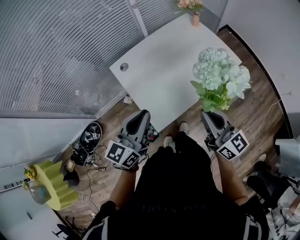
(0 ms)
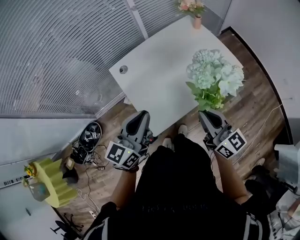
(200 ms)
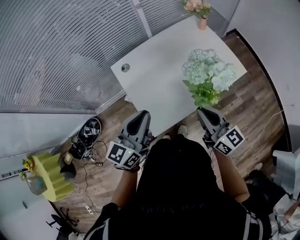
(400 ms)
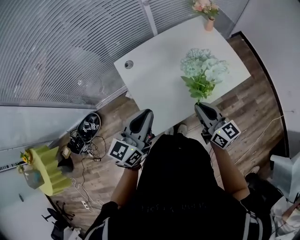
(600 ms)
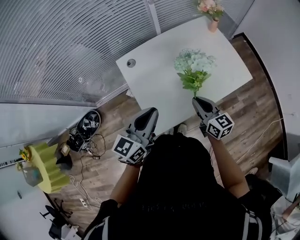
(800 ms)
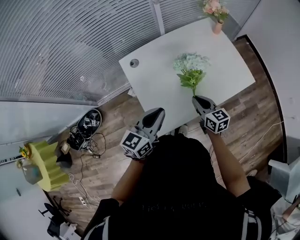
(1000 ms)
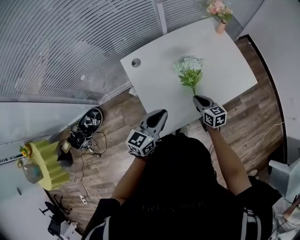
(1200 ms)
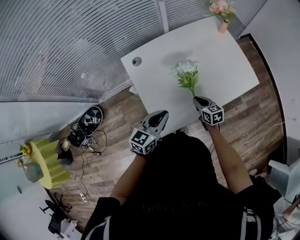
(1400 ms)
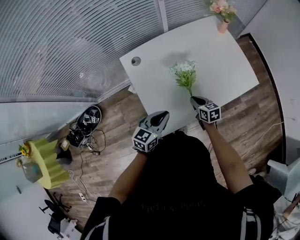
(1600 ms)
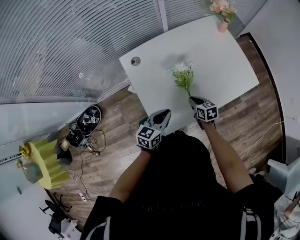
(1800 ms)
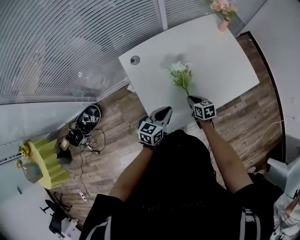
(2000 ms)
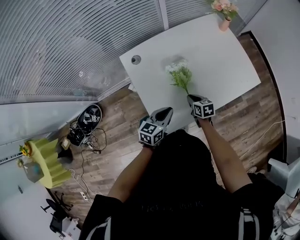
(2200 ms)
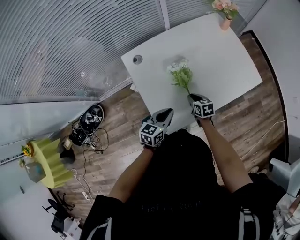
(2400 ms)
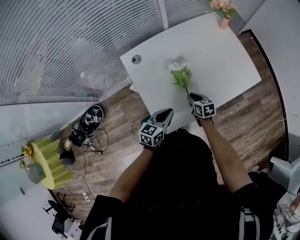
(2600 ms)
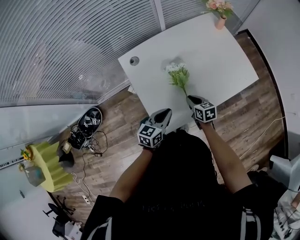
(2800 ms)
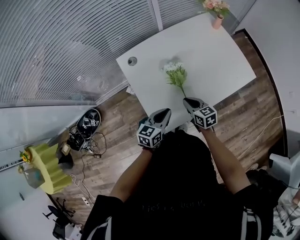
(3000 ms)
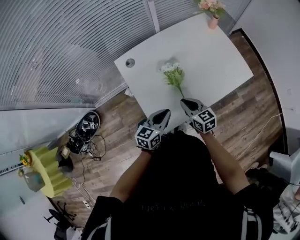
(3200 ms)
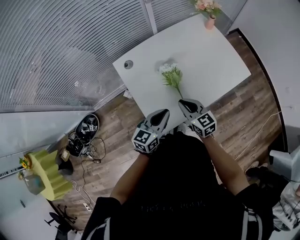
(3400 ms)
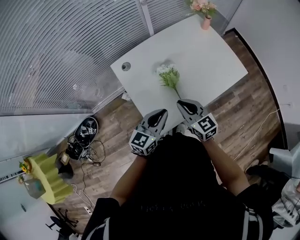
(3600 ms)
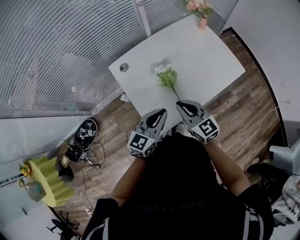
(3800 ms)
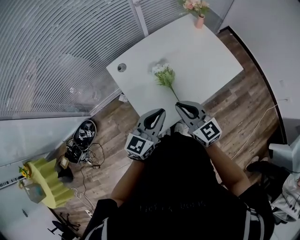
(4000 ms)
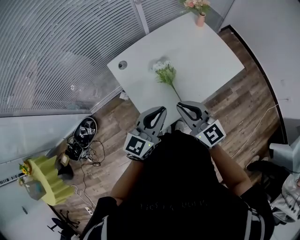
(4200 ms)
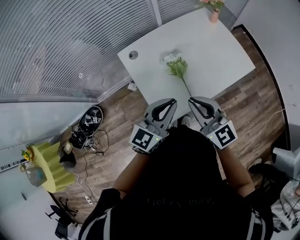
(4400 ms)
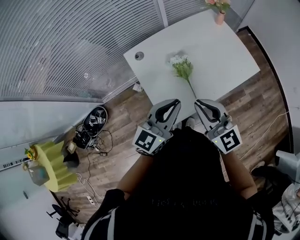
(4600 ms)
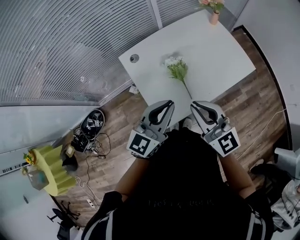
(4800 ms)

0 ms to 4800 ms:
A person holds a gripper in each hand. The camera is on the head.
0 ms to 1600 ms: The right gripper travels downward and forward by about 35 cm, and tips its fingers downward by approximately 40 degrees. The left gripper travels downward by approximately 20 cm.
1600 ms to 3200 ms: The right gripper travels upward by roughly 10 cm.
3200 ms to 4800 ms: The grippers both shift upward by roughly 20 cm. The right gripper turns by roughly 30 degrees; the left gripper turns by some 30 degrees.

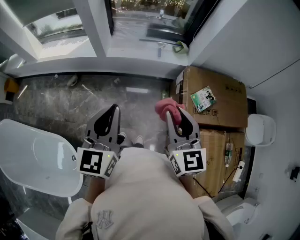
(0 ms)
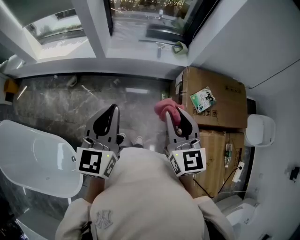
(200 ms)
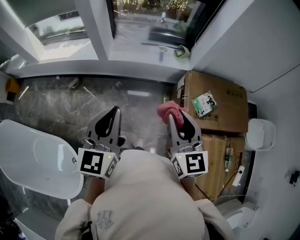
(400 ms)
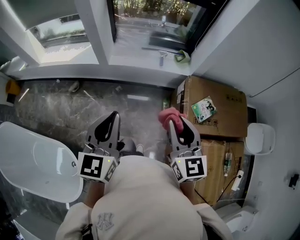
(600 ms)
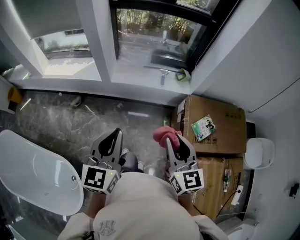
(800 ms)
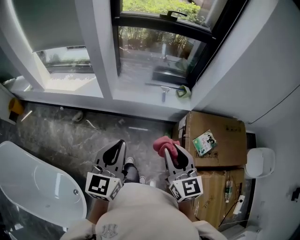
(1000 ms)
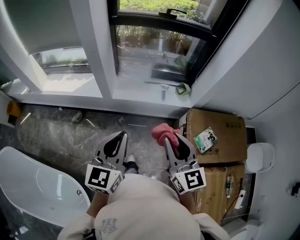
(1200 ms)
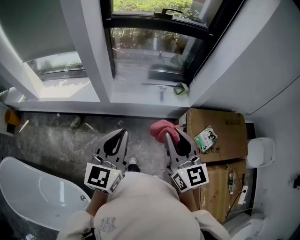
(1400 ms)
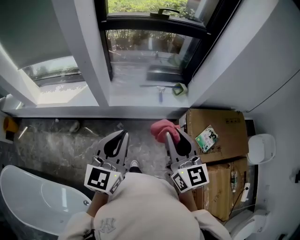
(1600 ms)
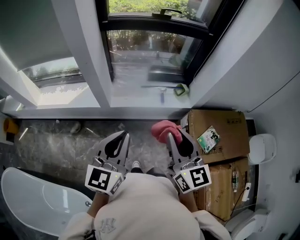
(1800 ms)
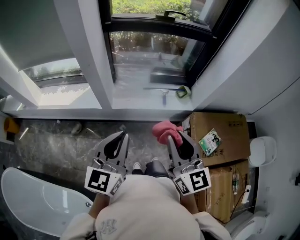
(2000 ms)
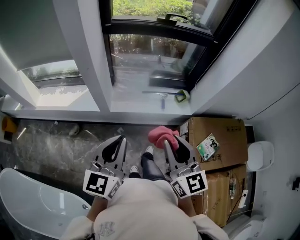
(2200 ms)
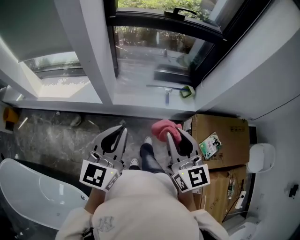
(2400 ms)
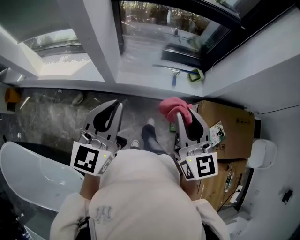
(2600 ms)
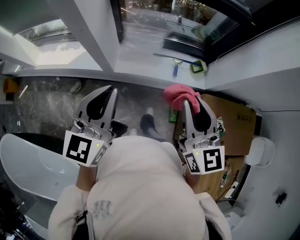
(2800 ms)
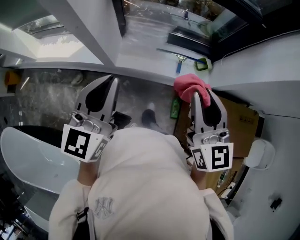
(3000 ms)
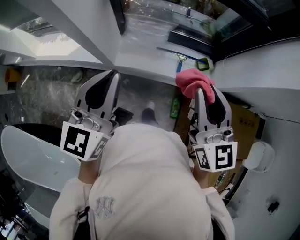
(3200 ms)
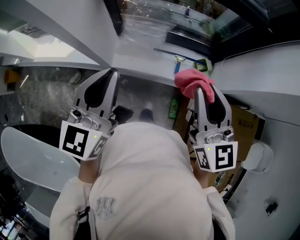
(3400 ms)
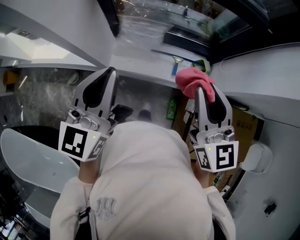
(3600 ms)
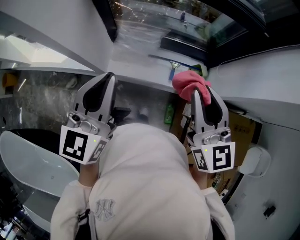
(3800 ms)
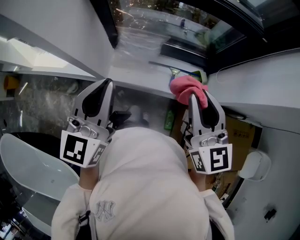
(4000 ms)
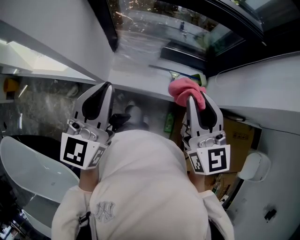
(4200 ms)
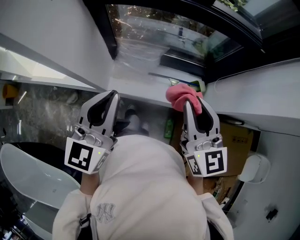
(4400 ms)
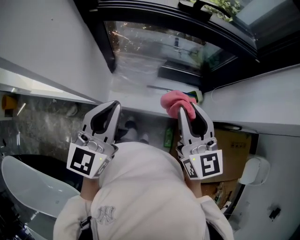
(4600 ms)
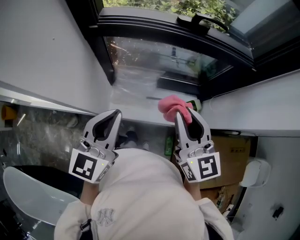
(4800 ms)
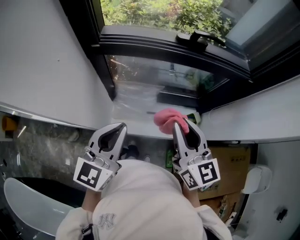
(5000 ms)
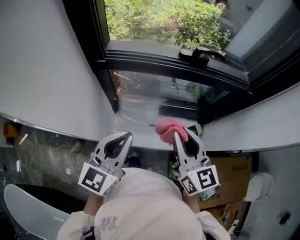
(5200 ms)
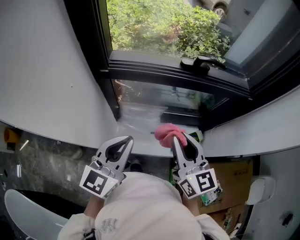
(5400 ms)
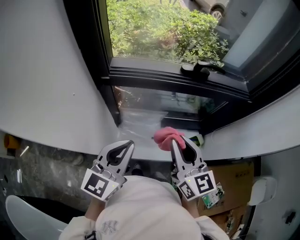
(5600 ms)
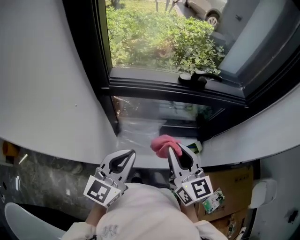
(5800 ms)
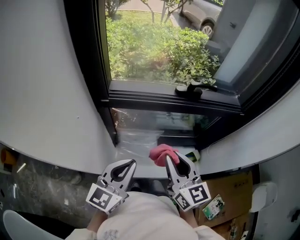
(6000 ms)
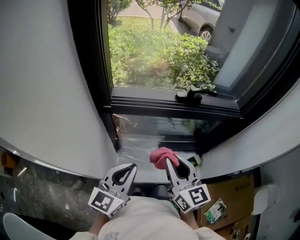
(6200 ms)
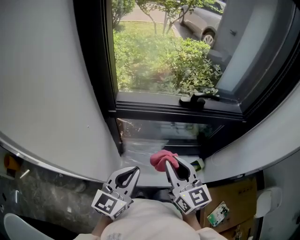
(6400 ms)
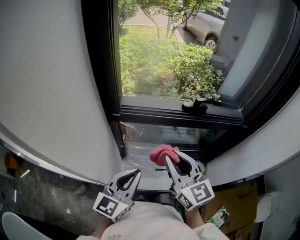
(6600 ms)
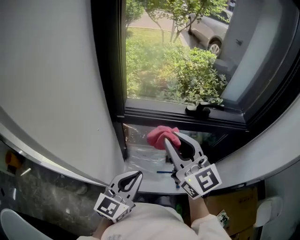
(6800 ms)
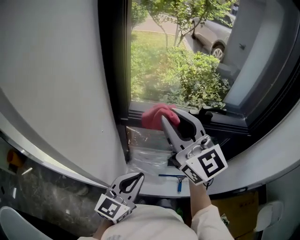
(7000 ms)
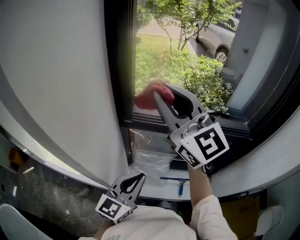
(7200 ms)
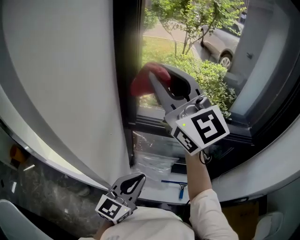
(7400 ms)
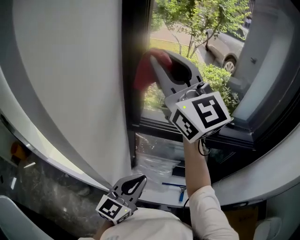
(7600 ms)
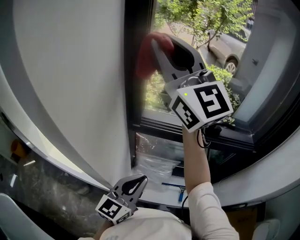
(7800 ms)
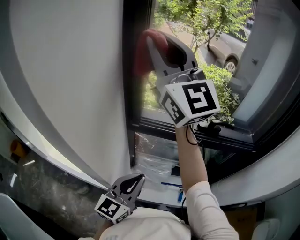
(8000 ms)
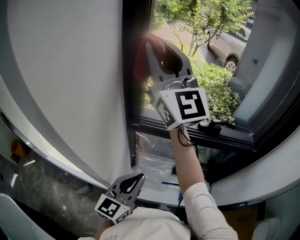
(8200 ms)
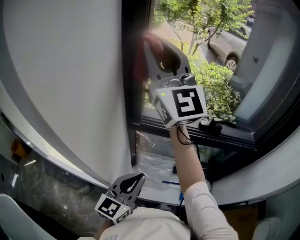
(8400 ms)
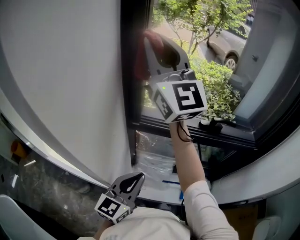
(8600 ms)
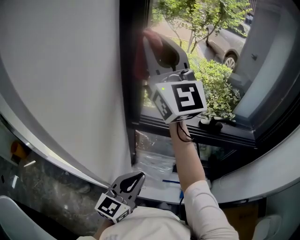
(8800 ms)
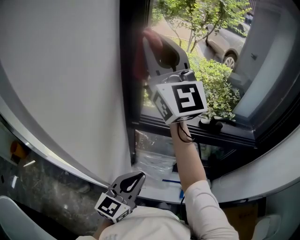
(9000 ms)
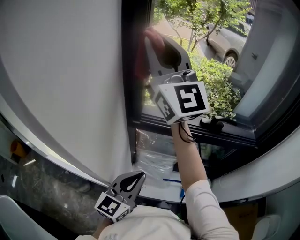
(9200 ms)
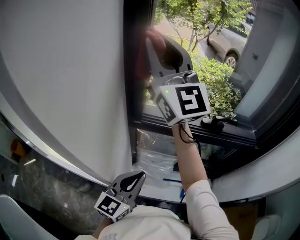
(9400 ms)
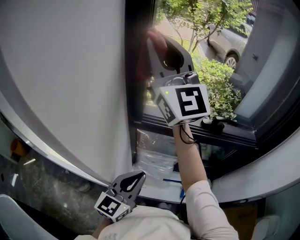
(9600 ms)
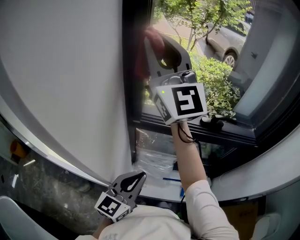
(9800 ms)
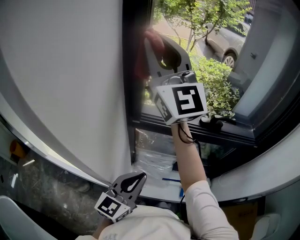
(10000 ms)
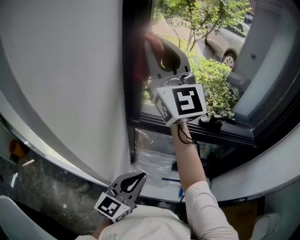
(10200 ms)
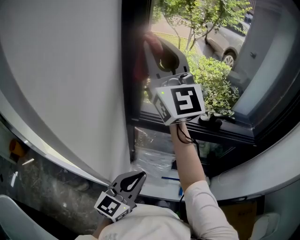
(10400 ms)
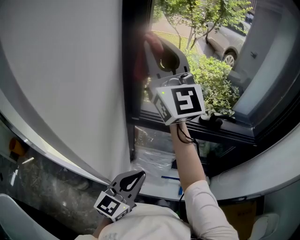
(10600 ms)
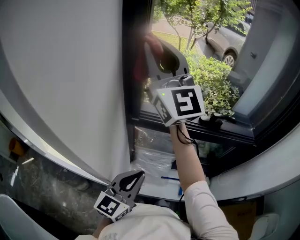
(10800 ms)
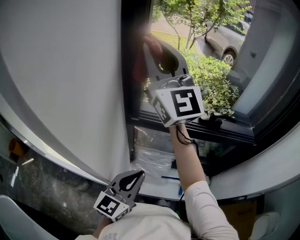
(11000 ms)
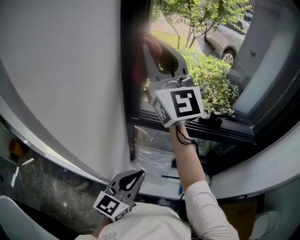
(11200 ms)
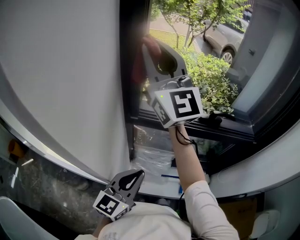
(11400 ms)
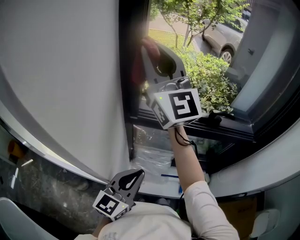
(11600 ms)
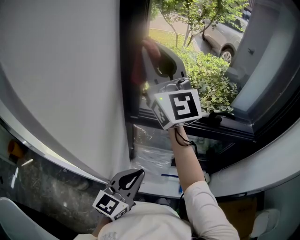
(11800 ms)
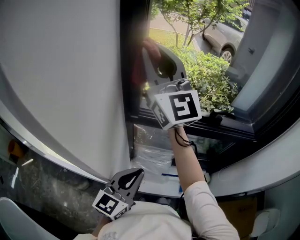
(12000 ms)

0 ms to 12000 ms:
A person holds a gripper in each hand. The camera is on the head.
0 ms to 1600 ms: The left gripper moves forward, approximately 20 cm. Meanwhile the right gripper heads forward and to the left, covering about 20 cm.
1600 ms to 3000 ms: Both grippers travel together forward, about 20 cm.
3000 ms to 4400 ms: The grippers both shift forward by approximately 10 cm.
4400 ms to 6000 ms: The right gripper goes some 15 cm to the left and forward, while the left gripper travels forward by some 10 cm.
6000 ms to 7600 ms: The left gripper moves approximately 5 cm. The right gripper is displaced upward, to the left and forward by about 40 cm, and changes its angle by some 50 degrees.
7600 ms to 12000 ms: There are only small adjustments of the grippers.

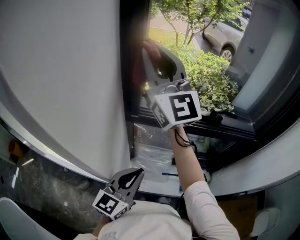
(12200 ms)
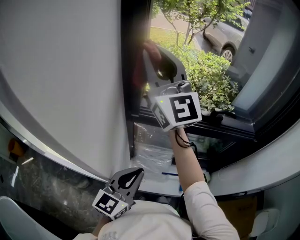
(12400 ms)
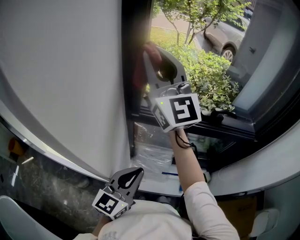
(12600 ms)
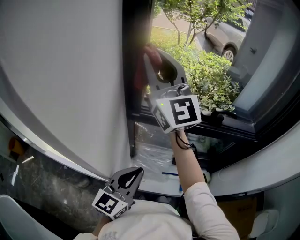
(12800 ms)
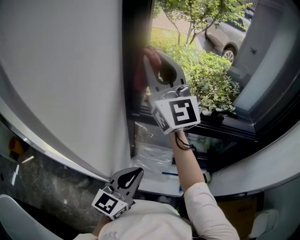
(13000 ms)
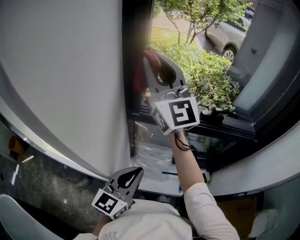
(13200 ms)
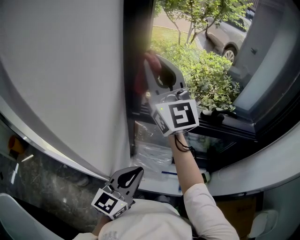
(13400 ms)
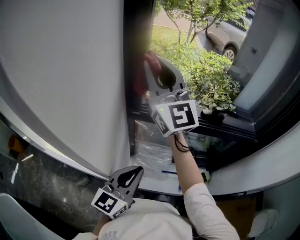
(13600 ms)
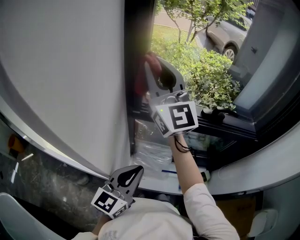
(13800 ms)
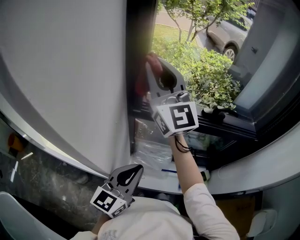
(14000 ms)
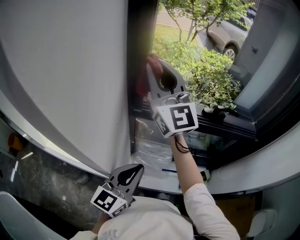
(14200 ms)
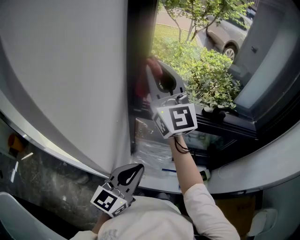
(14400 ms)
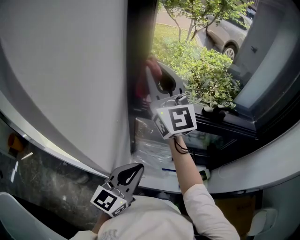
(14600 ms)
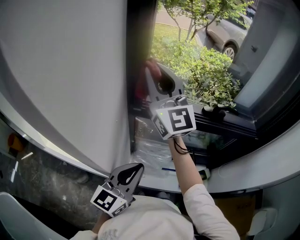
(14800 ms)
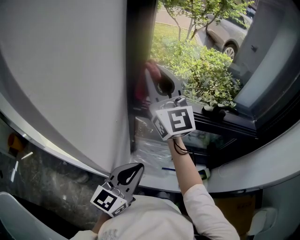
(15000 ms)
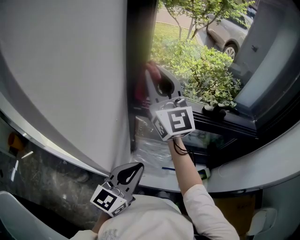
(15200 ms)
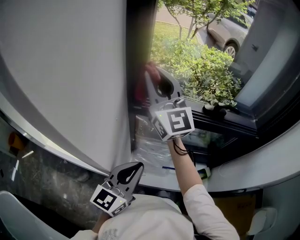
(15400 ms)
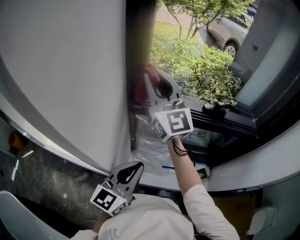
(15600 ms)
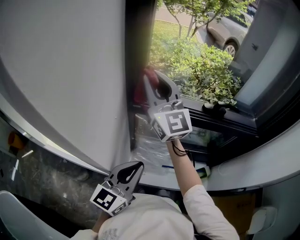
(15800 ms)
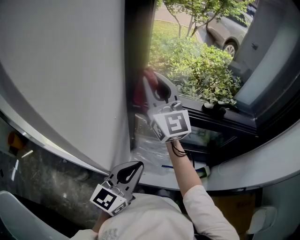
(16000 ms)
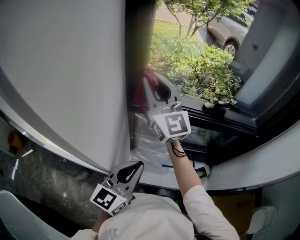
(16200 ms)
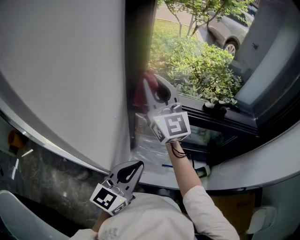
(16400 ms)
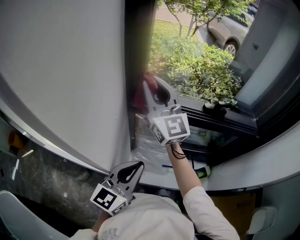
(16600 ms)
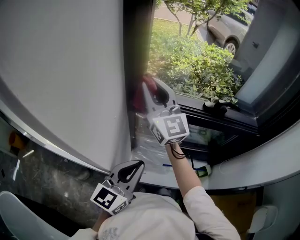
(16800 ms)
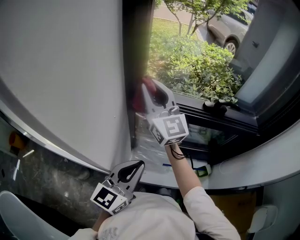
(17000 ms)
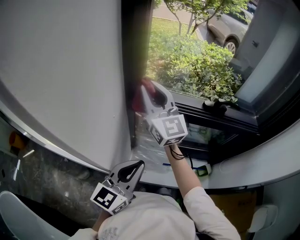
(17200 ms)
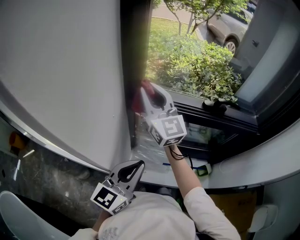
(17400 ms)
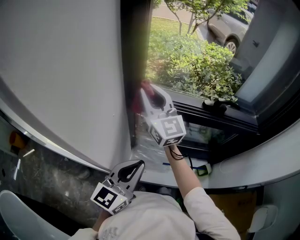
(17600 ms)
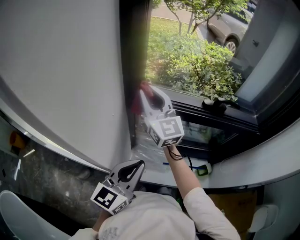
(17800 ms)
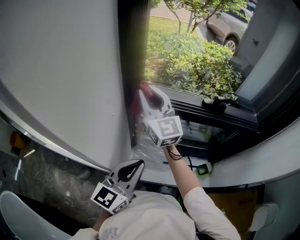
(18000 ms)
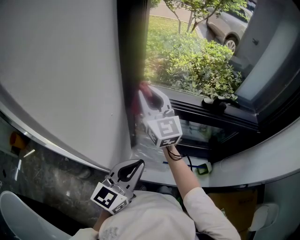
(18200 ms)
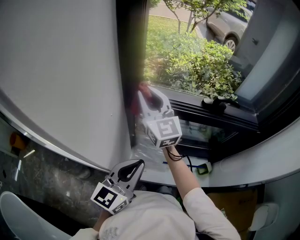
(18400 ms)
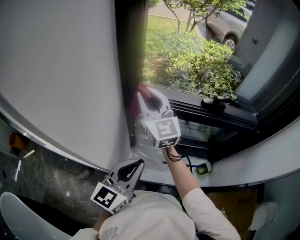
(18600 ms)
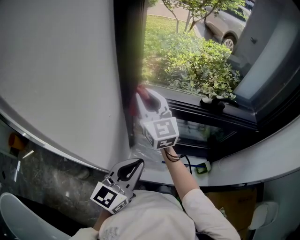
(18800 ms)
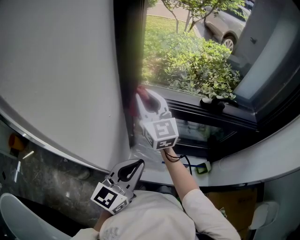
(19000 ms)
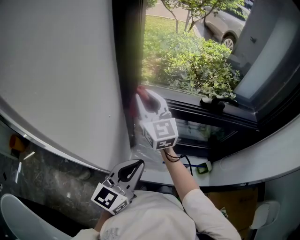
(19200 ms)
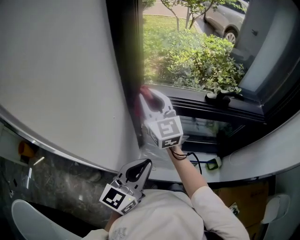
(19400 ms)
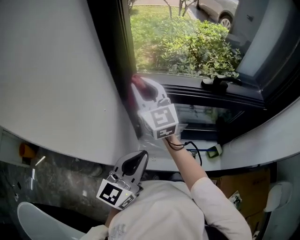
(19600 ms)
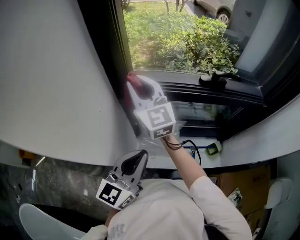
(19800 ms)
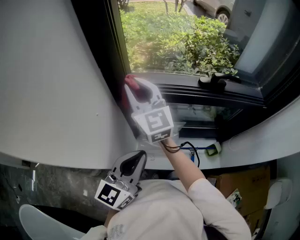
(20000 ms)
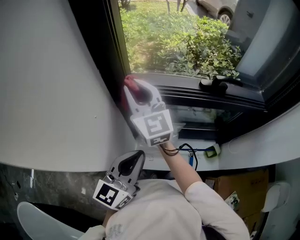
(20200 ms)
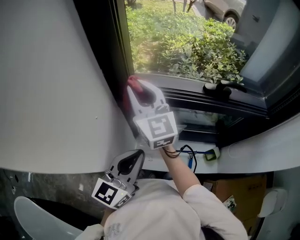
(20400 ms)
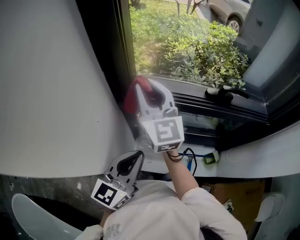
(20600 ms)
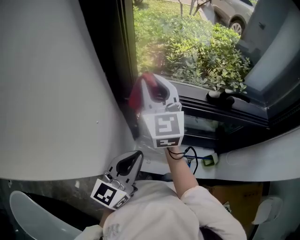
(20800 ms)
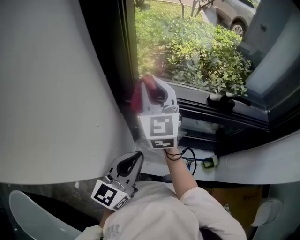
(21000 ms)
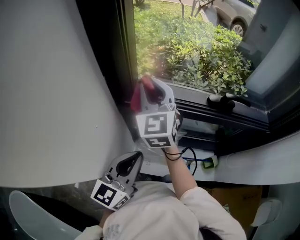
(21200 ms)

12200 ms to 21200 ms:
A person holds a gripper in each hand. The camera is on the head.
12200 ms to 13800 ms: The right gripper shifts some 5 cm downward.
13800 ms to 15200 ms: The grippers move only a little.
15200 ms to 16600 ms: The right gripper shifts roughly 5 cm downward.
16600 ms to 18200 ms: The right gripper goes roughly 5 cm downward.
18200 ms to 19800 ms: The two grippers keep their place.
19800 ms to 21200 ms: The right gripper ends up roughly 5 cm from where it was, and turns by roughly 20 degrees. The left gripper ends up roughly 5 cm from where it was.
